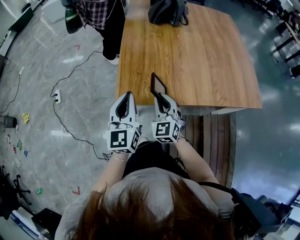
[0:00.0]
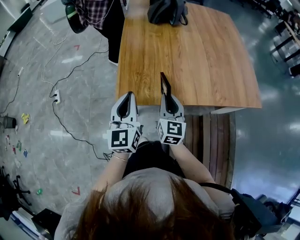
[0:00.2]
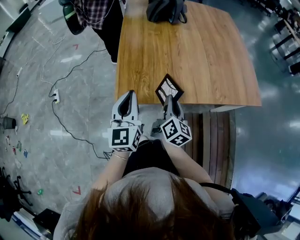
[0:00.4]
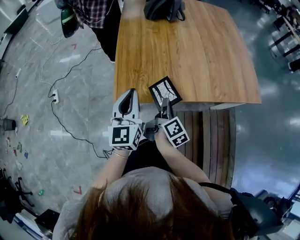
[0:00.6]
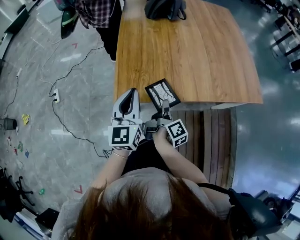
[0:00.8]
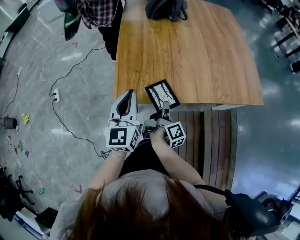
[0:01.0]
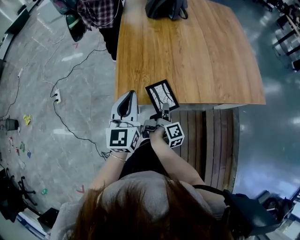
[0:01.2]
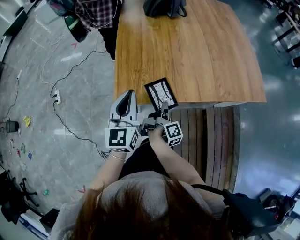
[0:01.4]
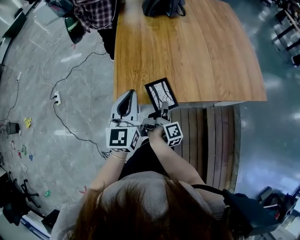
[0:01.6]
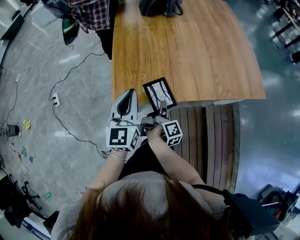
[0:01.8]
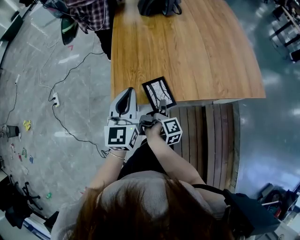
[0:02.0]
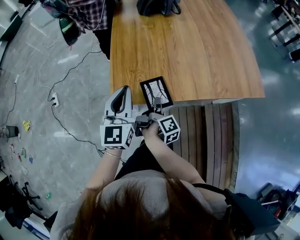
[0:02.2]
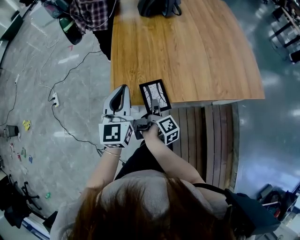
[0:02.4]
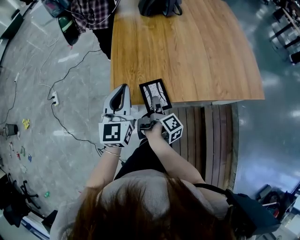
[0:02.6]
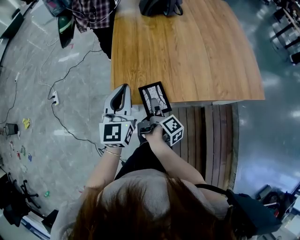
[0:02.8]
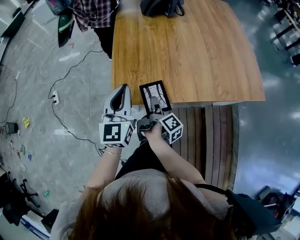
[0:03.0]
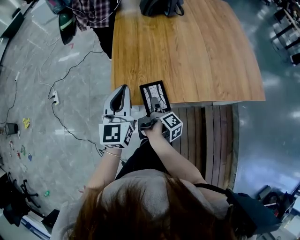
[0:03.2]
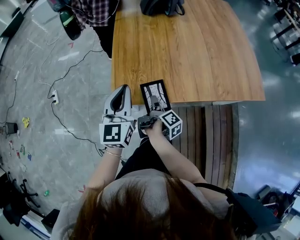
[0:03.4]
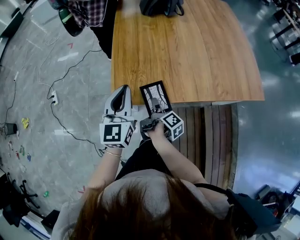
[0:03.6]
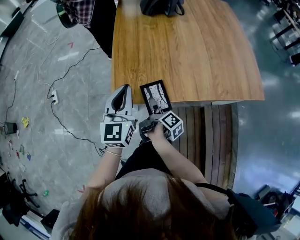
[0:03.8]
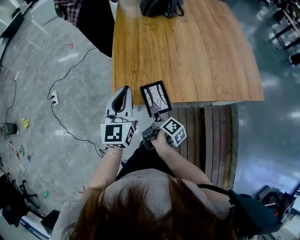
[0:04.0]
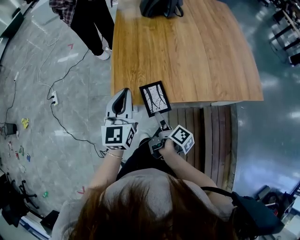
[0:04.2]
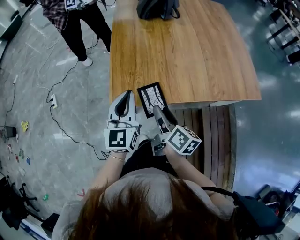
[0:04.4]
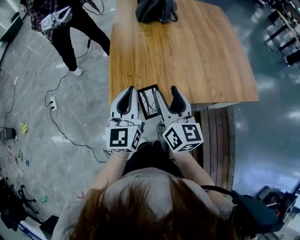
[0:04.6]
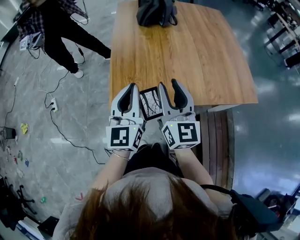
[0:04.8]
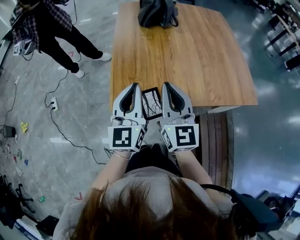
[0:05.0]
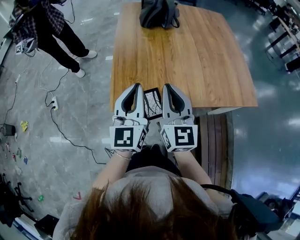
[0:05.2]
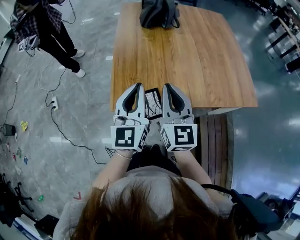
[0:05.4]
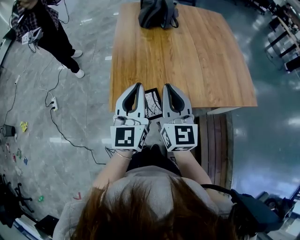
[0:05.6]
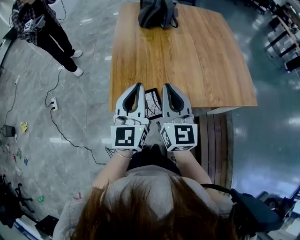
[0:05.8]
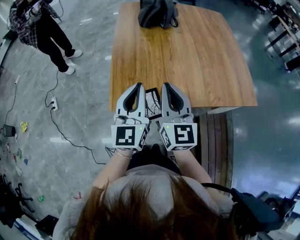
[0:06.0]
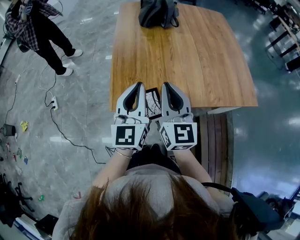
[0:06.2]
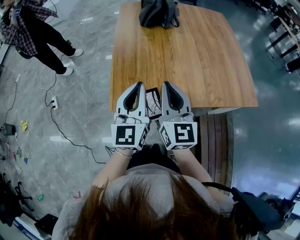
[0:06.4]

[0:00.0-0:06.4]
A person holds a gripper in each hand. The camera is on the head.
0:00.0 to 0:01.6: The right gripper travels downward and to the right by roughly 15 cm, and rotates around the line of its fingers by roughly 120 degrees, clockwise from behind.
0:01.6 to 0:03.2: The right gripper swivels some 20 degrees, and opens its fingers.
0:03.2 to 0:04.8: The left gripper is displaced upward by approximately 5 cm; the right gripper heads upward, covering roughly 25 cm, and twists about 90 degrees counterclockwise, seen from behind.
0:04.8 to 0:06.4: The right gripper closes.

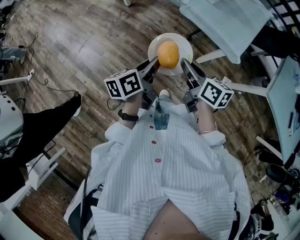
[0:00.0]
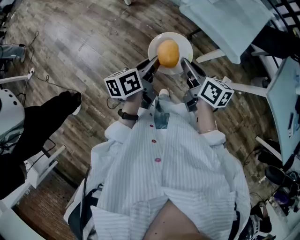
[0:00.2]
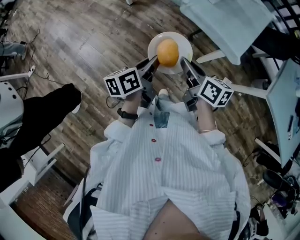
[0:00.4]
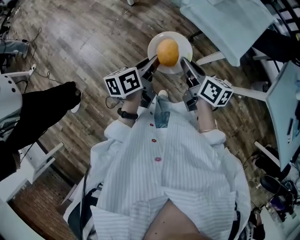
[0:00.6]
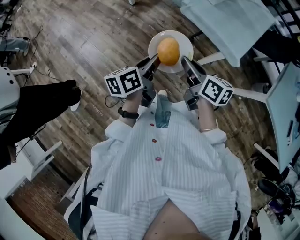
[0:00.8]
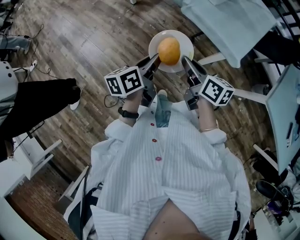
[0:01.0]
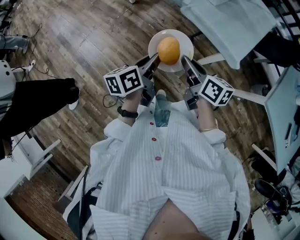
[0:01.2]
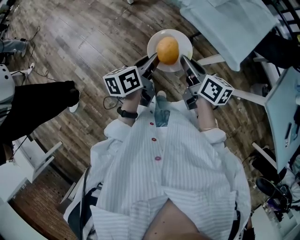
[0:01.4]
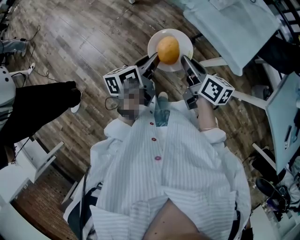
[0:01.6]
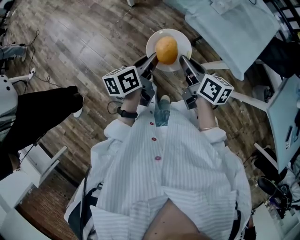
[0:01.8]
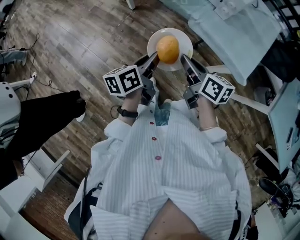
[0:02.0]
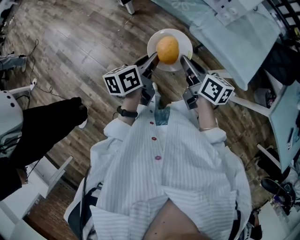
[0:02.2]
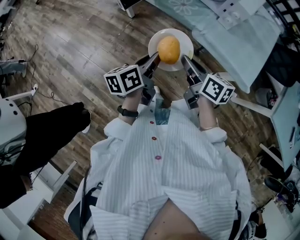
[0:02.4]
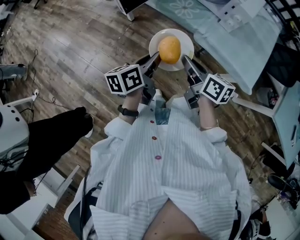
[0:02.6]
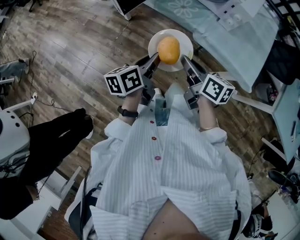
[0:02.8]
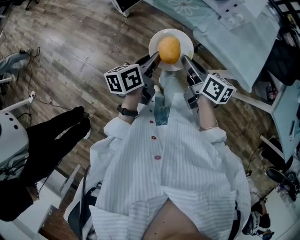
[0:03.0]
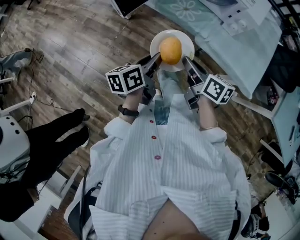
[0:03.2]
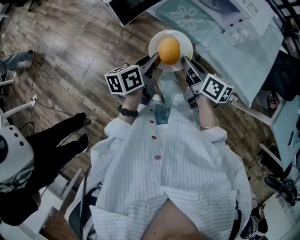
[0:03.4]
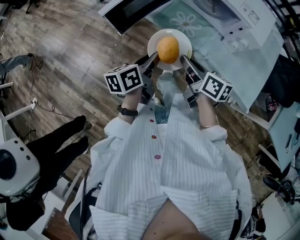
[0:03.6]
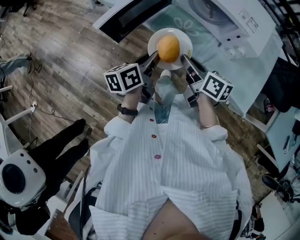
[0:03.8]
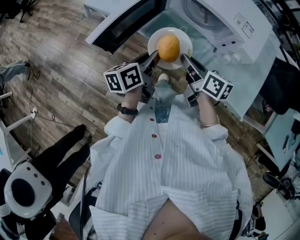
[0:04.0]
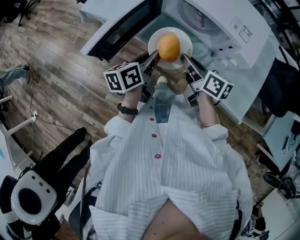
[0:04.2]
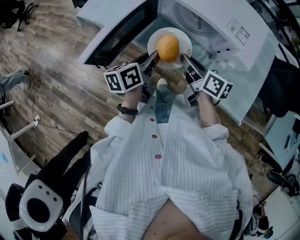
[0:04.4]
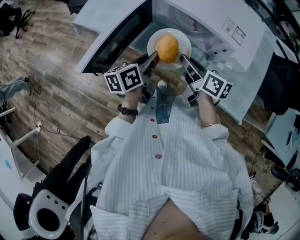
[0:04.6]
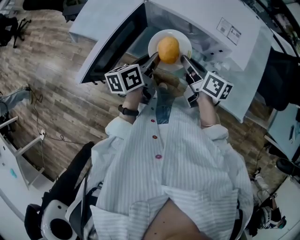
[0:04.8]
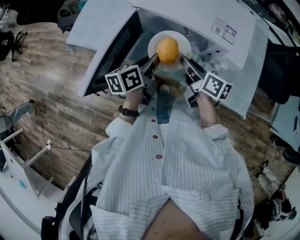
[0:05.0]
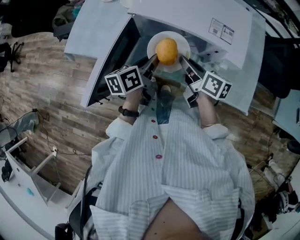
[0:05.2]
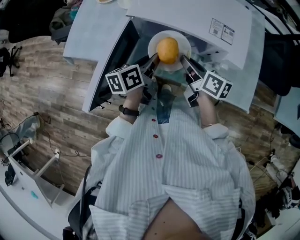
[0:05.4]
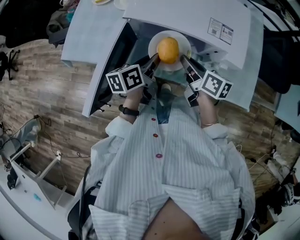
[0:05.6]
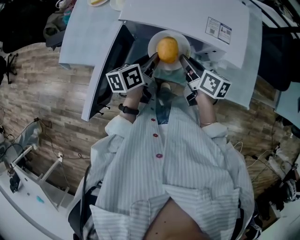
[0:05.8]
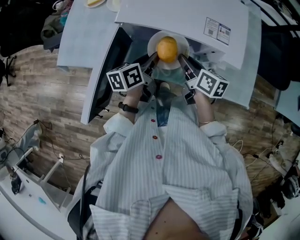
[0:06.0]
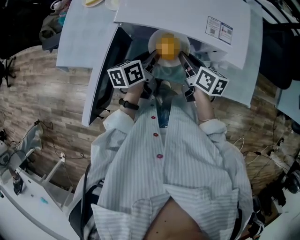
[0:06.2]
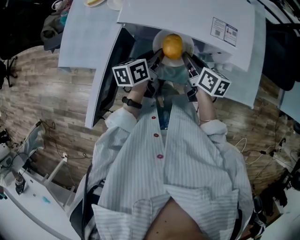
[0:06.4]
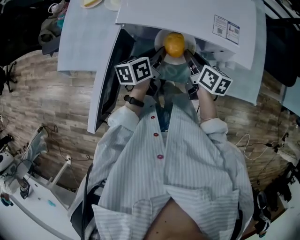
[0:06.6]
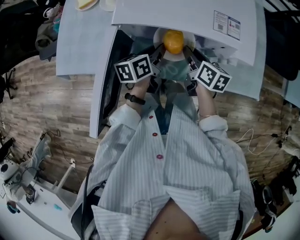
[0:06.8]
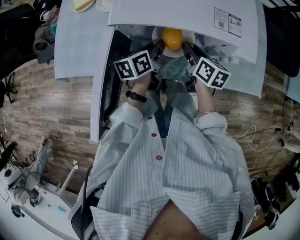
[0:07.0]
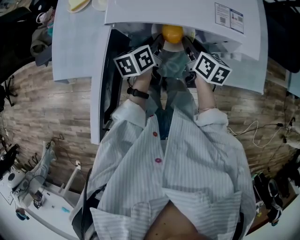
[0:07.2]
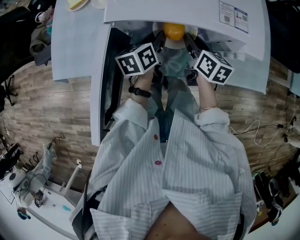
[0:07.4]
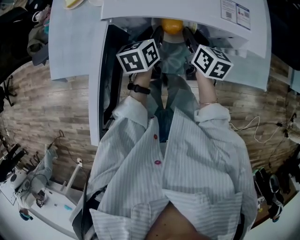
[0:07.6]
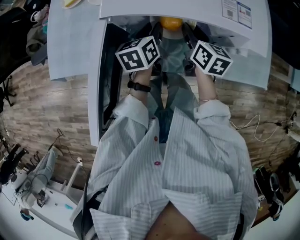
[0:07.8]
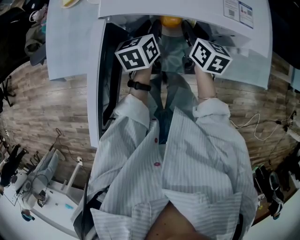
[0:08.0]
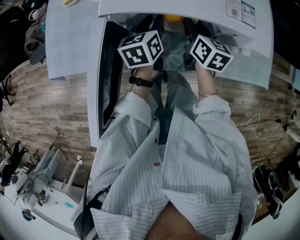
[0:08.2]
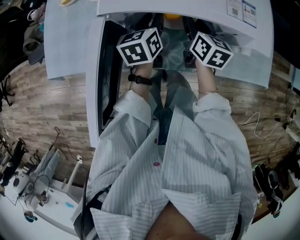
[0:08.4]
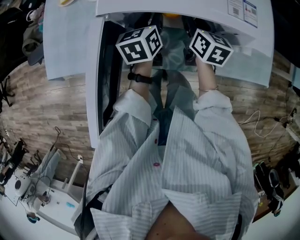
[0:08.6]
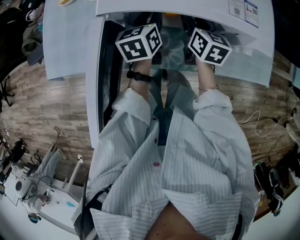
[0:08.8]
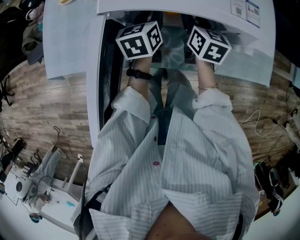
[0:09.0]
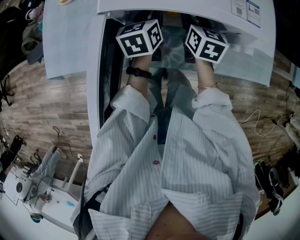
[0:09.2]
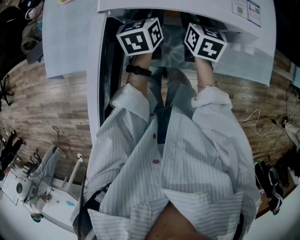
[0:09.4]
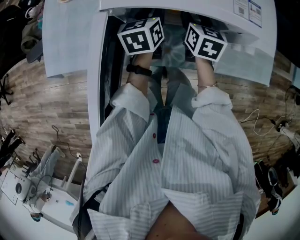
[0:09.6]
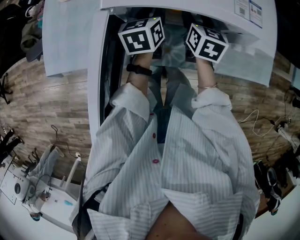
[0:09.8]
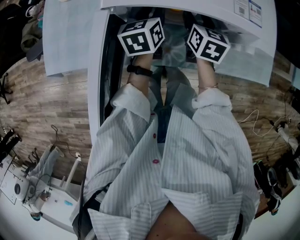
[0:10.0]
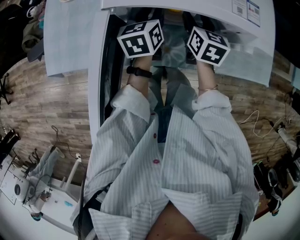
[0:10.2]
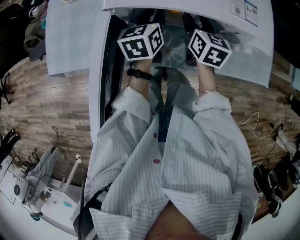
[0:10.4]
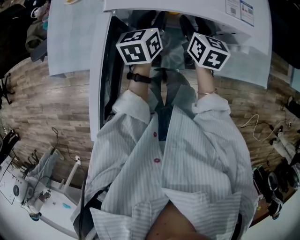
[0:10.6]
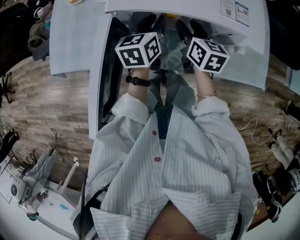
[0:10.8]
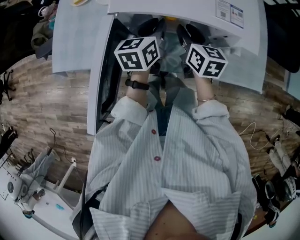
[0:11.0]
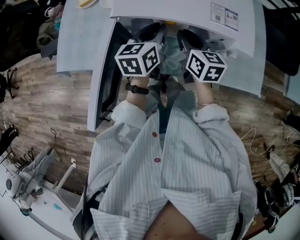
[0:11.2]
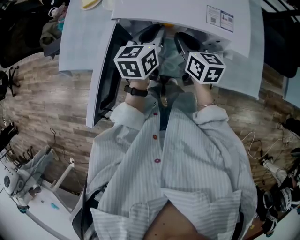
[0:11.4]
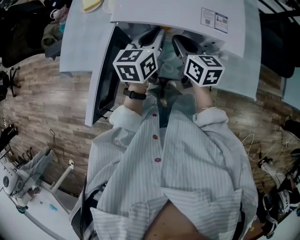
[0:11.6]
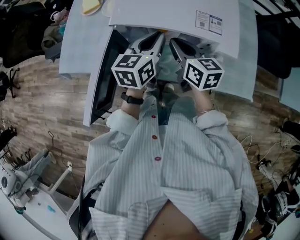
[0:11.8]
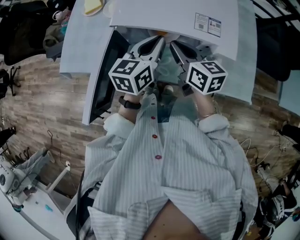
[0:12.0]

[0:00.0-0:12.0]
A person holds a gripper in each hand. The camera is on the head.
0:00.0 to 0:01.6: The grippers both shift forward by roughly 10 cm.
0:01.6 to 0:03.0: The two grippers go some 20 cm forward and to the left.
0:03.0 to 0:04.4: The grippers both shift forward by approximately 30 cm.
0:04.4 to 0:06.0: The two grippers go roughly 10 cm forward and to the right. The left gripper swivels approximately 20 degrees; the right gripper turns by roughly 20 degrees.
0:06.0 to 0:07.6: Both grippers travel together forward and downward, roughly 10 cm. The right gripper turns by approximately 20 degrees.
0:07.6 to 0:10.4: There are only small adjustments of the grippers.
0:10.4 to 0:12.0: Both grippers travel together upward and backward, approximately 15 cm. The right gripper swivels about 30 degrees, and closes up.

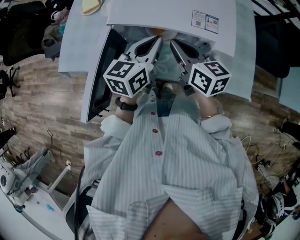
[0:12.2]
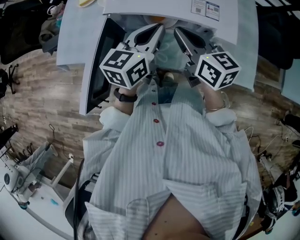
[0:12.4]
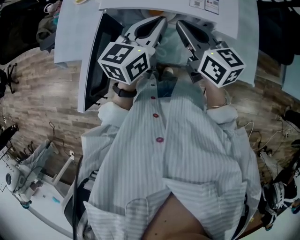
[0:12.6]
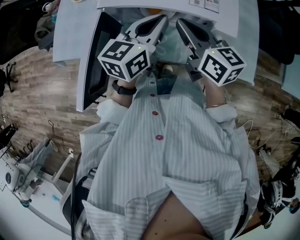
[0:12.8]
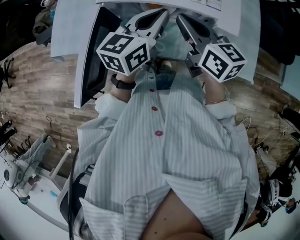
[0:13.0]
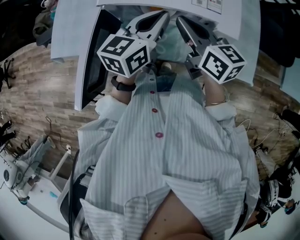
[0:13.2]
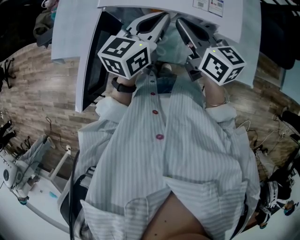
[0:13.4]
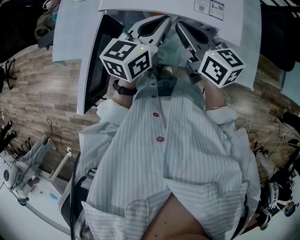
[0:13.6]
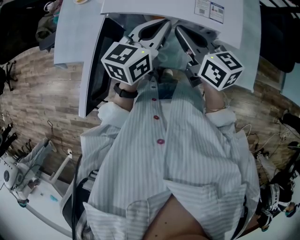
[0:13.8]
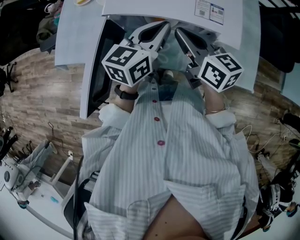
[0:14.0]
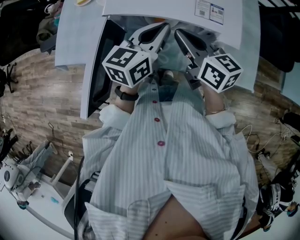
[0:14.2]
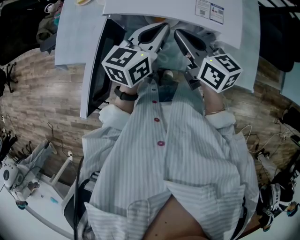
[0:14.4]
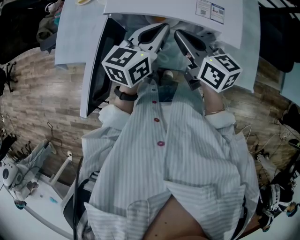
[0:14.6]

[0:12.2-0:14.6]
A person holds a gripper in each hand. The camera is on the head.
0:12.2 to 0:14.6: There are only small adjustments of the grippers.

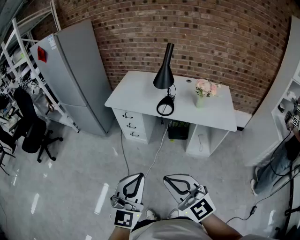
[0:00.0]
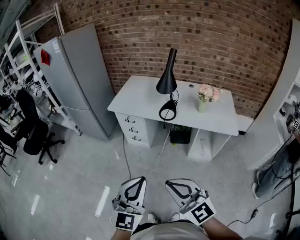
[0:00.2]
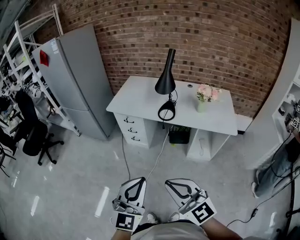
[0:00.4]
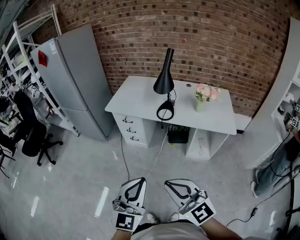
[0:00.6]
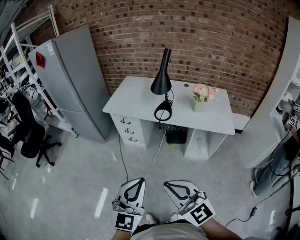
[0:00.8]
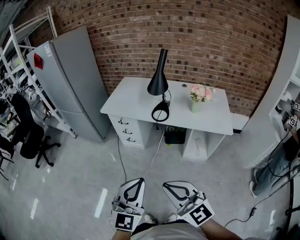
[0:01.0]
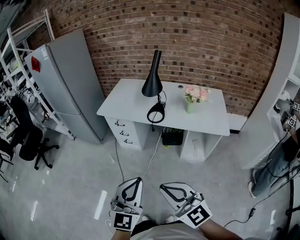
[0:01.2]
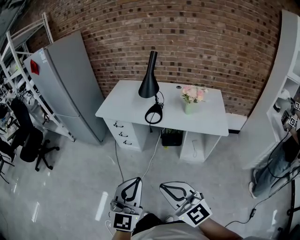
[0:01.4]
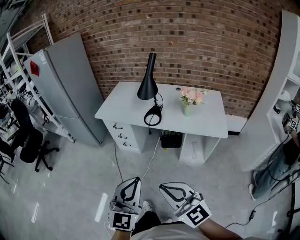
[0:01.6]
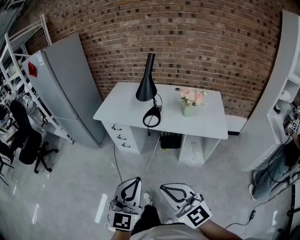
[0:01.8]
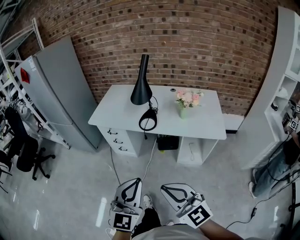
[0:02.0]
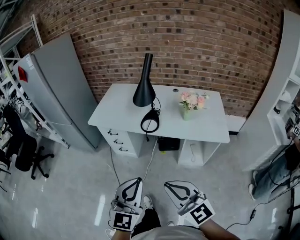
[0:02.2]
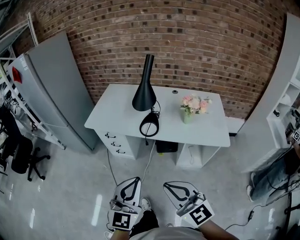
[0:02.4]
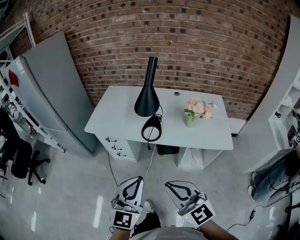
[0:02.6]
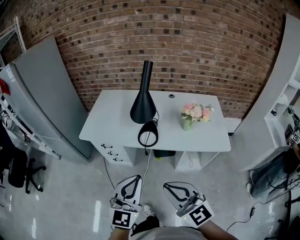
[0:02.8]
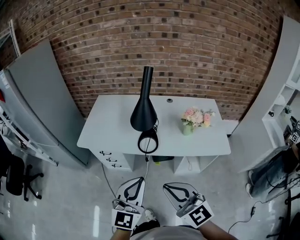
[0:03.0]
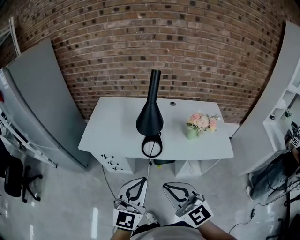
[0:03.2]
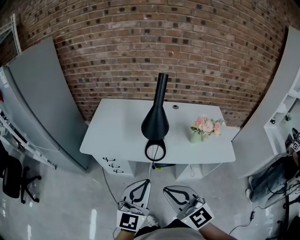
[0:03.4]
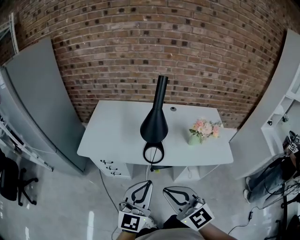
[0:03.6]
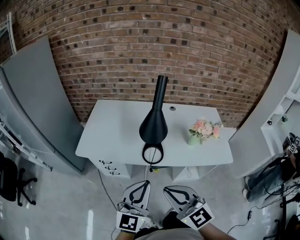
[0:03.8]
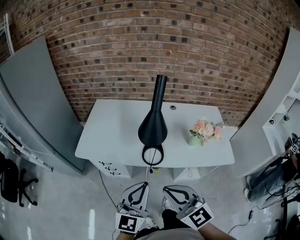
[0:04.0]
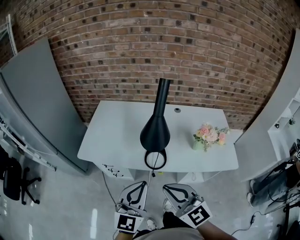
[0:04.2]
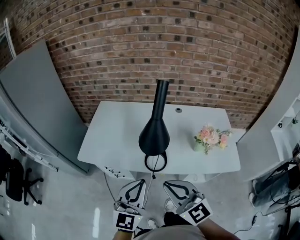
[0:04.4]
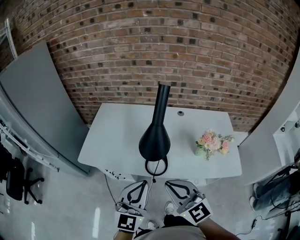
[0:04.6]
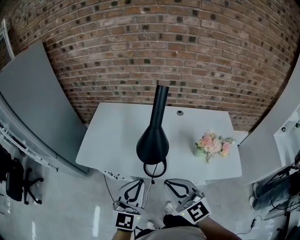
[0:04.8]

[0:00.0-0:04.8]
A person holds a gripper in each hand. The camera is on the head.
0:00.0 to 0:01.6: The grippers both shift to the right by approximately 10 cm.
0:01.6 to 0:03.2: Both grippers travel together forward, some 30 cm.
0:03.2 to 0:04.8: The grippers both shift forward by roughly 15 cm.
